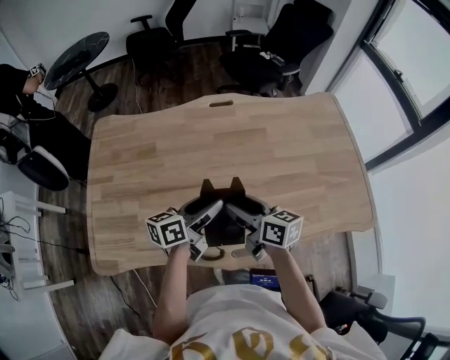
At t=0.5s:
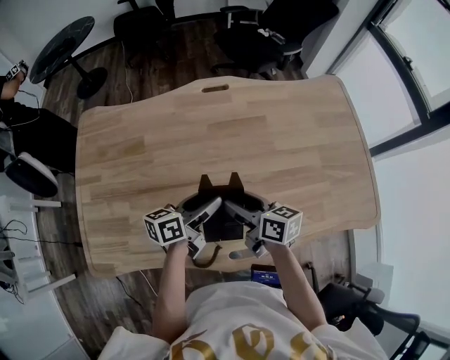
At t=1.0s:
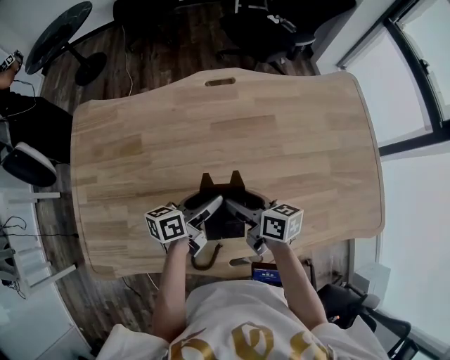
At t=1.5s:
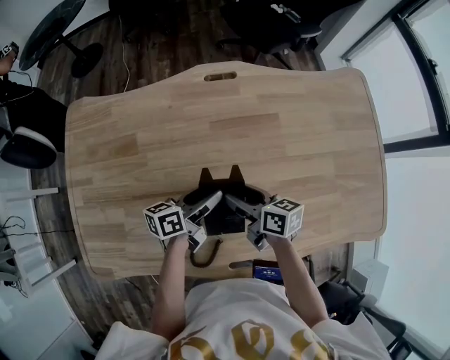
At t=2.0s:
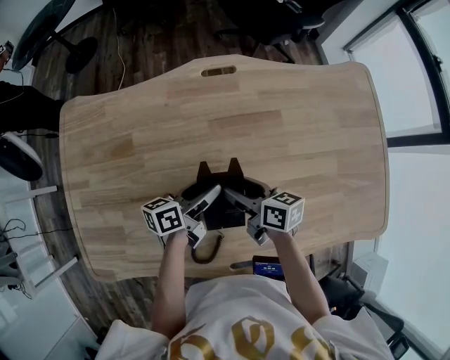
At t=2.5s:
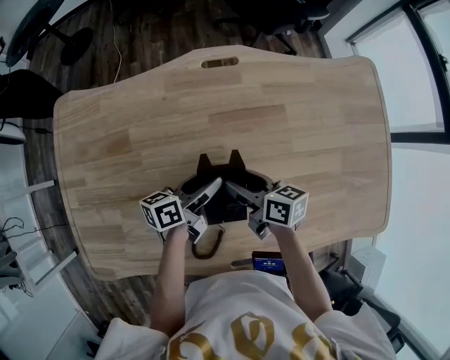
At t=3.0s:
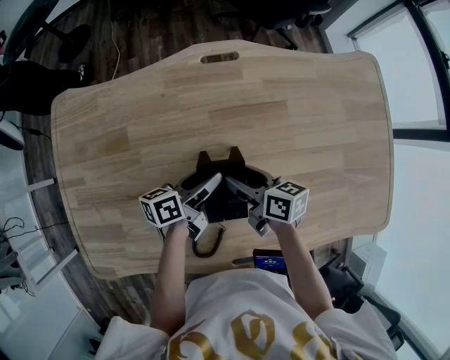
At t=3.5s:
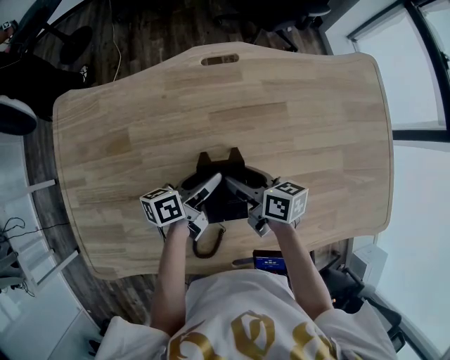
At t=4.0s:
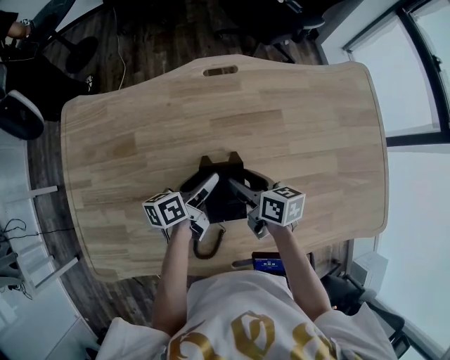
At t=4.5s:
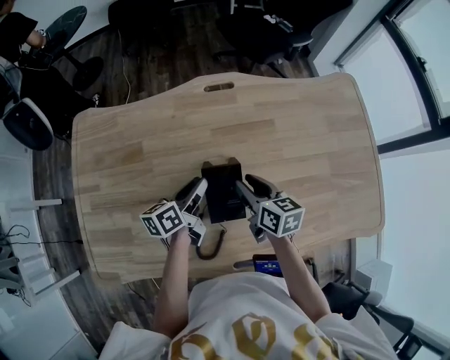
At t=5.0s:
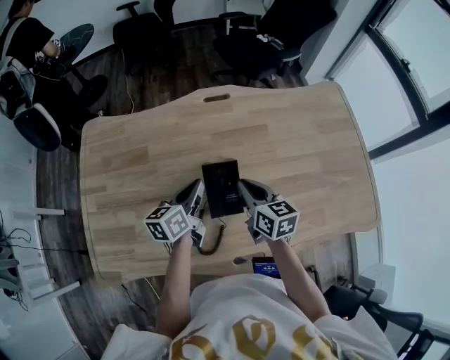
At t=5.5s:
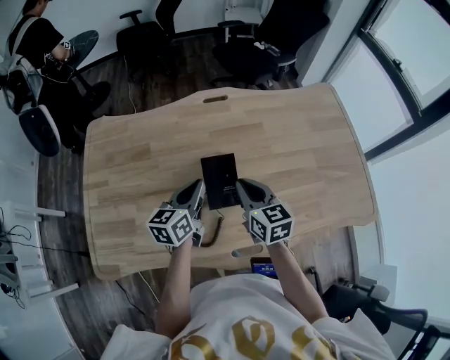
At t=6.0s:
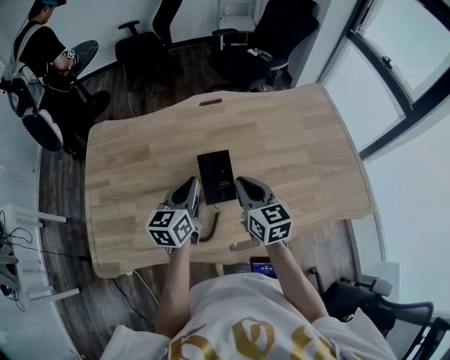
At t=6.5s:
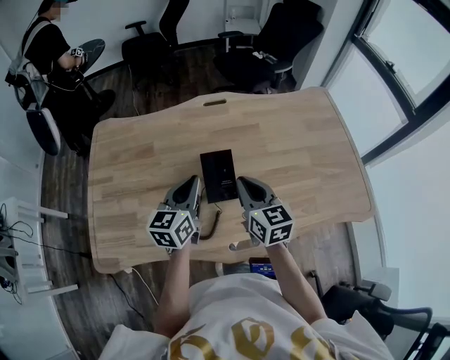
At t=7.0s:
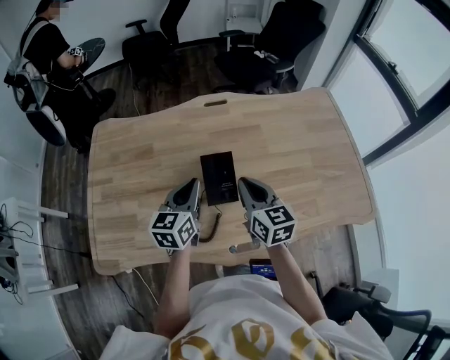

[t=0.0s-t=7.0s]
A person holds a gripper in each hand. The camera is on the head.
t=0.0s to t=2.0s: The two grippers go about 20 cm forward and downward.
t=2.0s to t=3.5s: The grippers make only small movements.
t=3.5s to t=5.0s: Both grippers move upward and backward, some 15 cm. The right gripper turns by roughly 30 degrees, and closes, while the left gripper changes its angle by some 30 degrees, and closes.
t=5.0s to t=7.0s: The grippers both shift backward and upward by roughly 10 cm. The left gripper swivels about 20 degrees.

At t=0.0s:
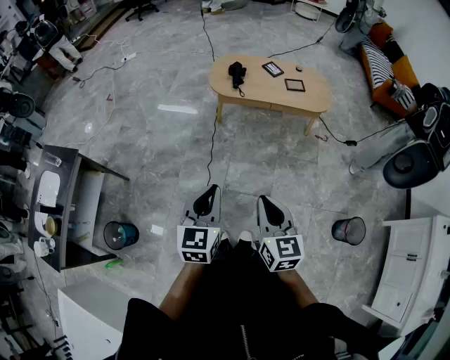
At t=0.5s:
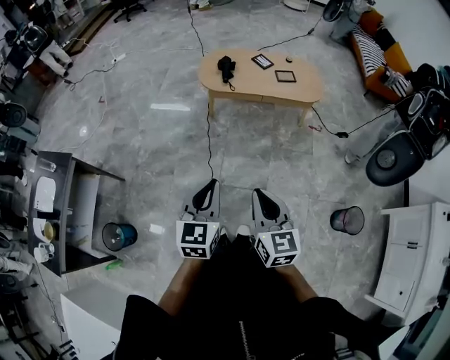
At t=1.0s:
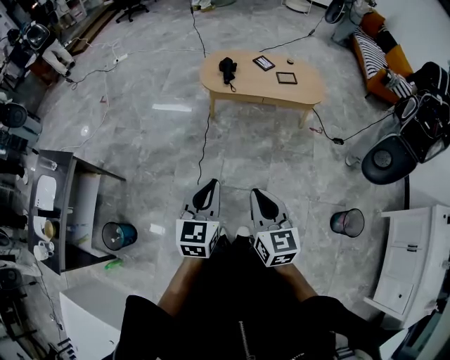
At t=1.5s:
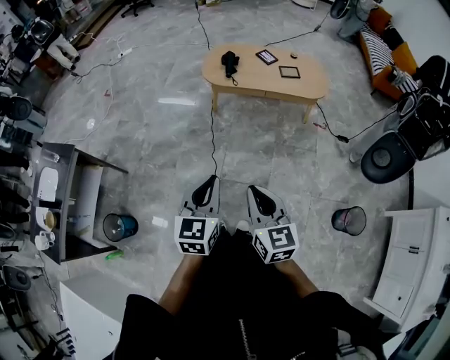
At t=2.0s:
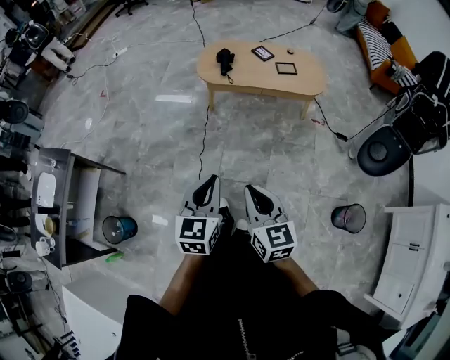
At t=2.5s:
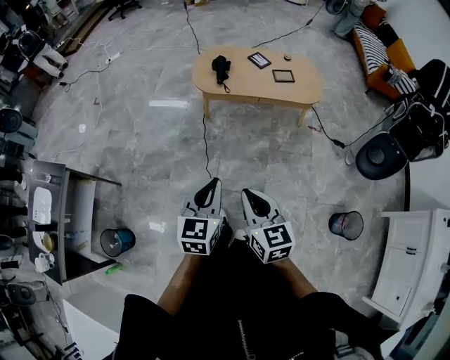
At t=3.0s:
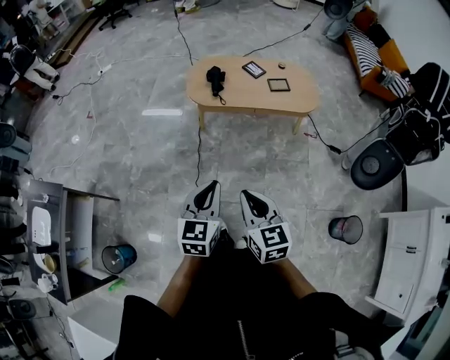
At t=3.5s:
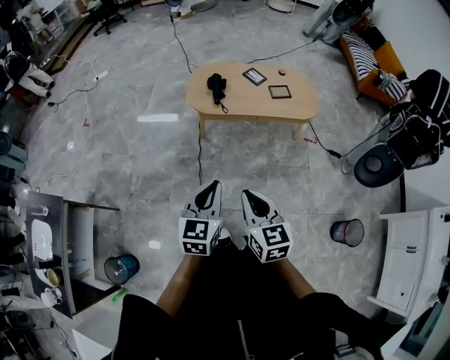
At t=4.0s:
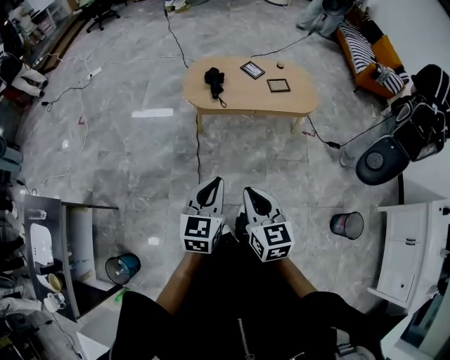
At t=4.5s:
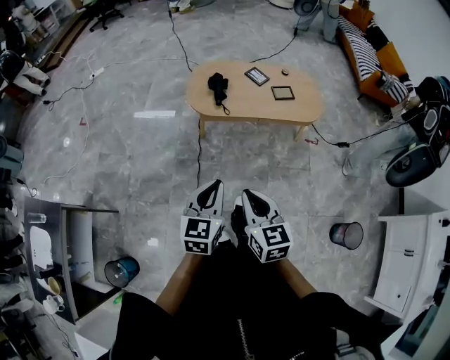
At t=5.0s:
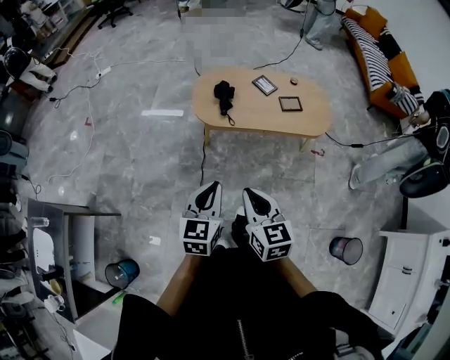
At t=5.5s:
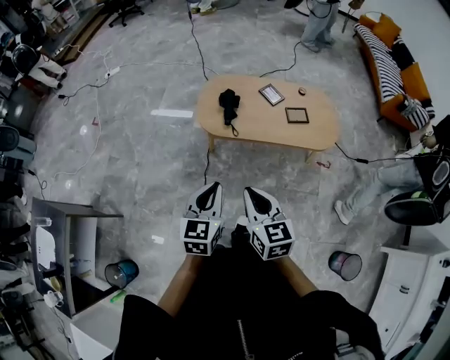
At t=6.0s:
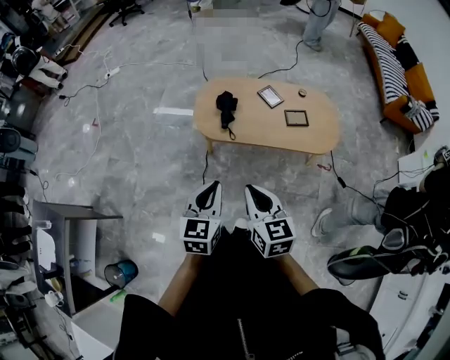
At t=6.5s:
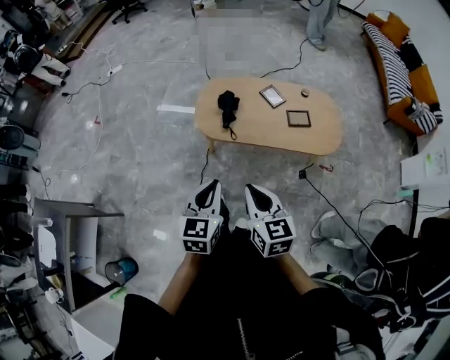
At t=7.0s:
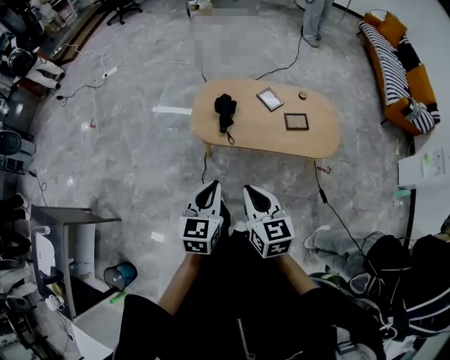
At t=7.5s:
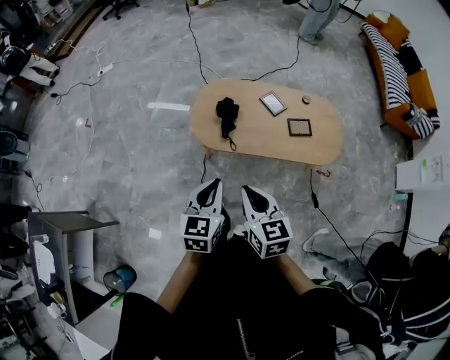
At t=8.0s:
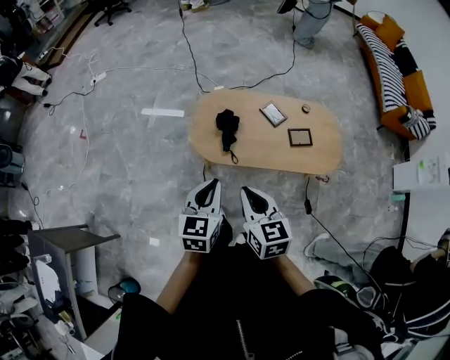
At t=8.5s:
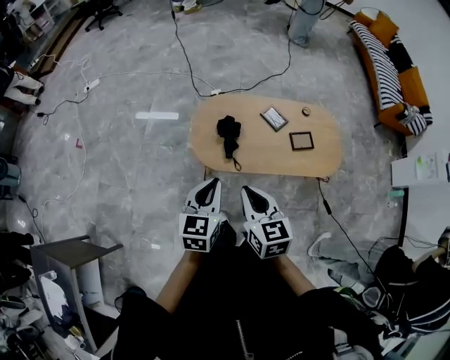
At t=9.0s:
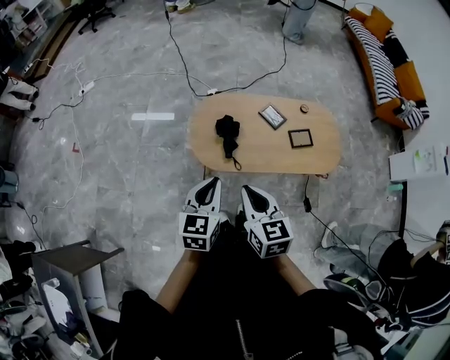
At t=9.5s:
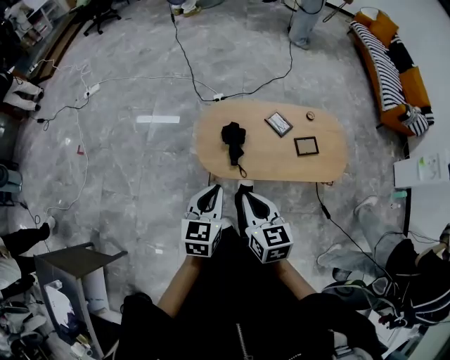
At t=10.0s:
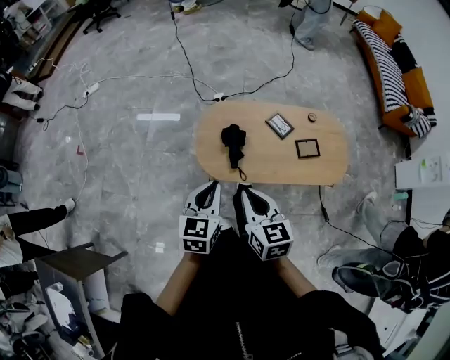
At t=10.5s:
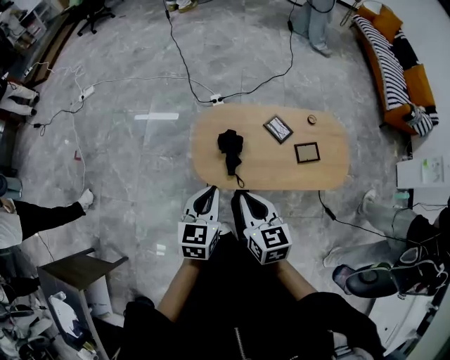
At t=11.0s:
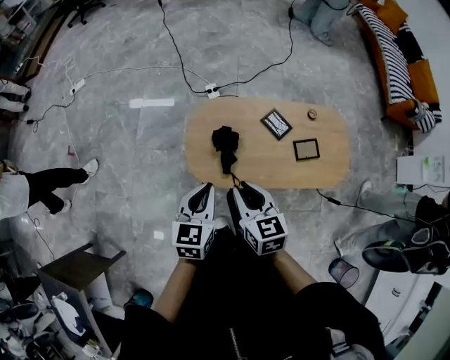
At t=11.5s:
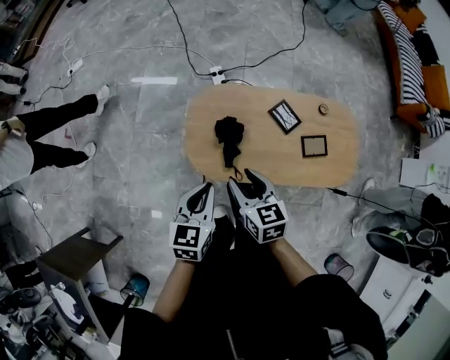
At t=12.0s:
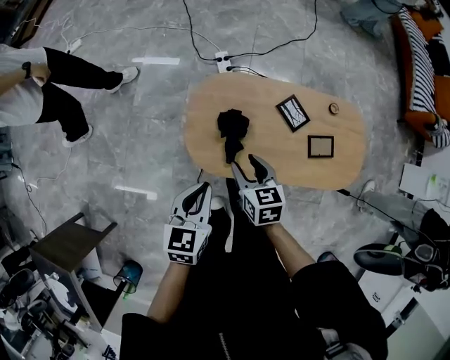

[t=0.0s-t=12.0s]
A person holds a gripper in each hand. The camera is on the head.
t=0.0s to t=2.0s: The left gripper travels to the right by some 5 cm.
t=2.0s to t=4.0s: The left gripper travels forward by approximately 20 cm. Meanwhile the right gripper moves forward and to the left, approximately 20 cm.
t=4.0s to t=6.0s: Both grippers move forward, roughly 20 cm.
t=6.0s to t=8.0s: Both grippers move forward, approximately 15 cm.
t=8.0s to t=10.0s: The grippers both shift forward by some 10 cm.
t=10.0s to t=12.0s: The left gripper travels forward and downward by about 15 cm, while the right gripper goes some 25 cm forward and downward, and opens.

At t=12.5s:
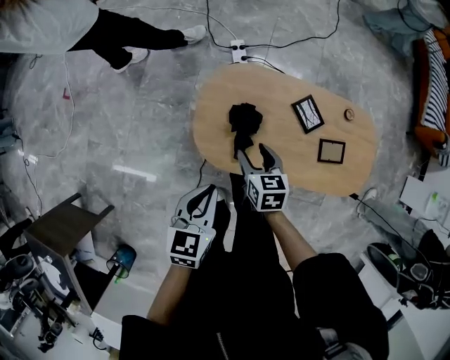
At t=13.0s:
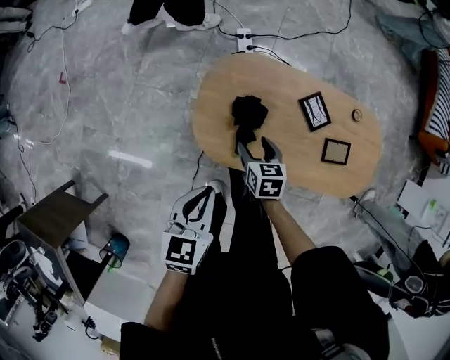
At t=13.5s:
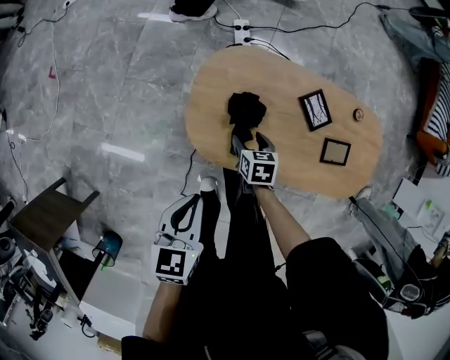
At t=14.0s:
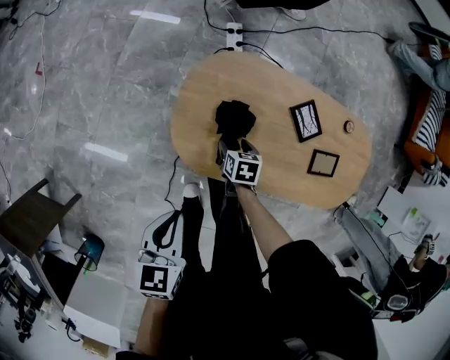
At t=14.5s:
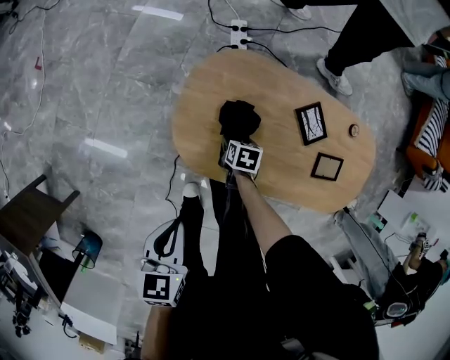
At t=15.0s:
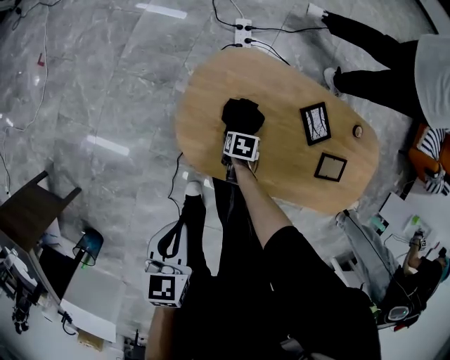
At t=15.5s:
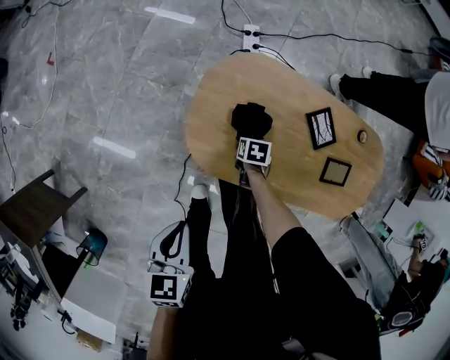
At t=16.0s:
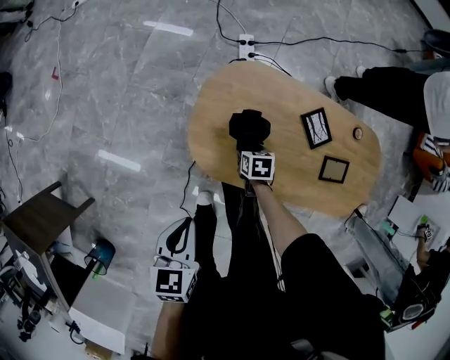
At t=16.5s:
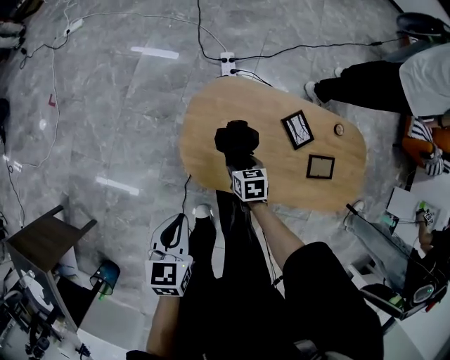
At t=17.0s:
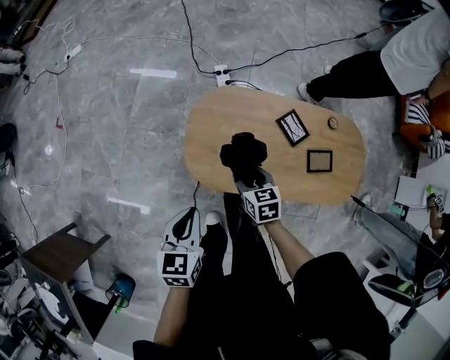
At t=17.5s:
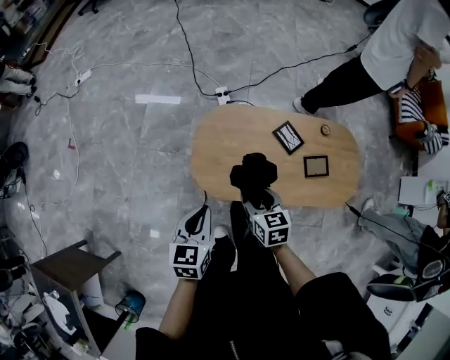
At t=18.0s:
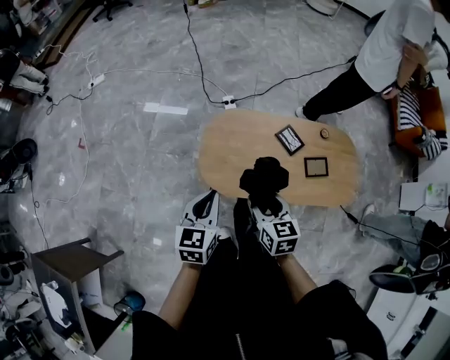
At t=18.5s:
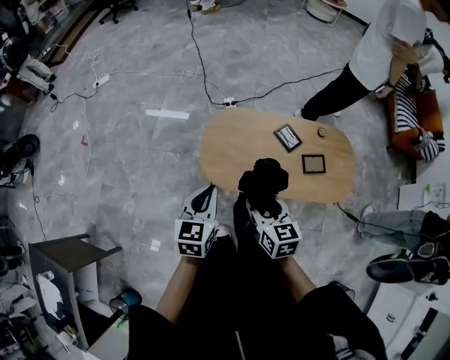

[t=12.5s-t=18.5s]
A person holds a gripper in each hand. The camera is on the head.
t=12.5s to t=14.5s: The left gripper goes approximately 10 cm downward. Meanwhile the right gripper is displaced downward by approximately 25 cm, and turns by some 30 degrees.
t=14.5s to t=16.5s: The right gripper heads upward, covering some 15 cm, and turns by about 20 degrees.
t=16.5s to t=18.5s: The left gripper travels upward by some 10 cm, and swivels some 20 degrees. Meanwhile the right gripper is displaced upward and backward by about 35 cm, and changes its angle by approximately 30 degrees.

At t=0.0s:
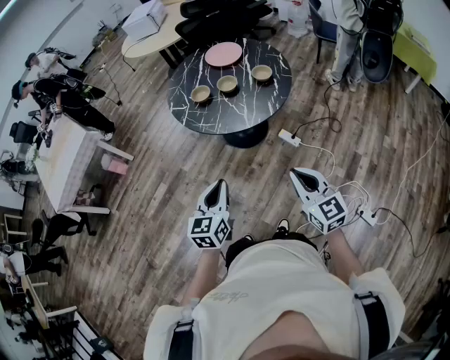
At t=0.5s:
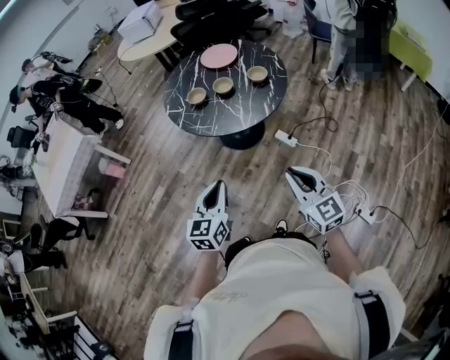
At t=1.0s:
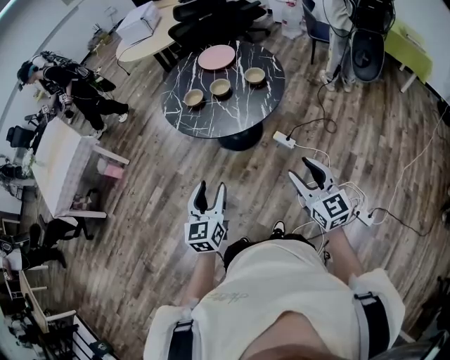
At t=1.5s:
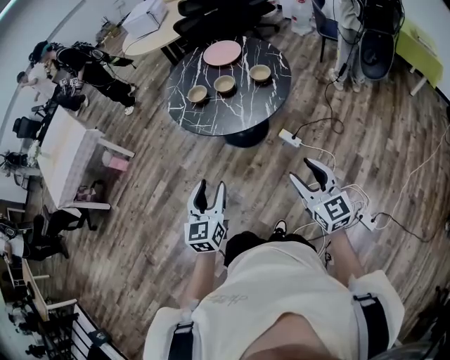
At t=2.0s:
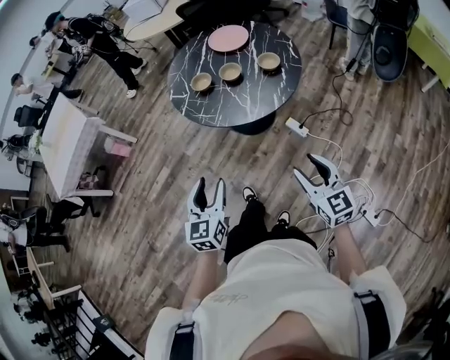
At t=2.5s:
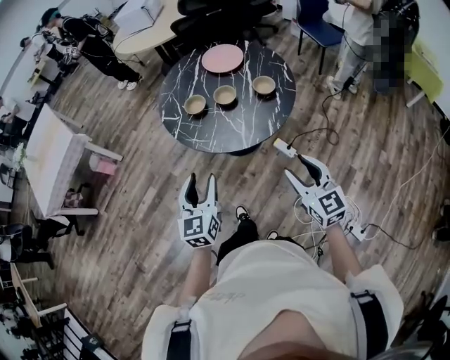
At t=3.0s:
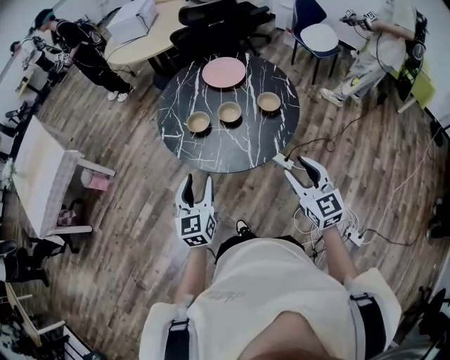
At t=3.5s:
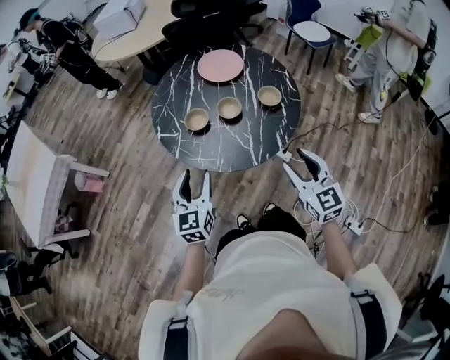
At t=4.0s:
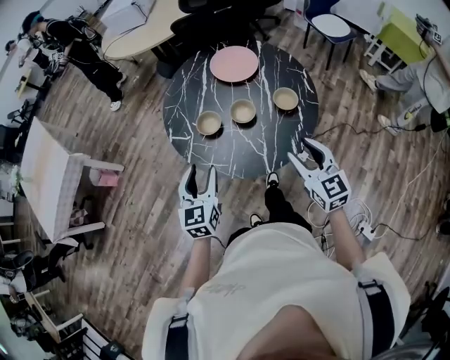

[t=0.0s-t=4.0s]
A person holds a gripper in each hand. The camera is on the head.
t=0.0s to t=2.0s: The left gripper opens its fingers; the right gripper heads to the right and forward, covering approximately 10 cm, and opens its fingers.
t=2.0s to t=4.0s: Both grippers move forward, roughly 30 cm.
